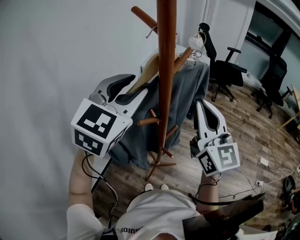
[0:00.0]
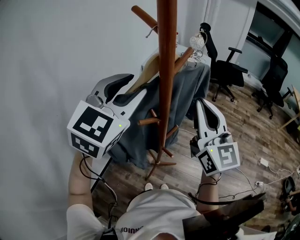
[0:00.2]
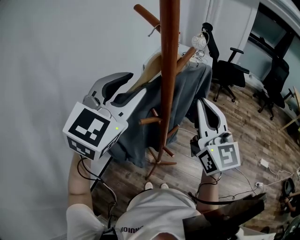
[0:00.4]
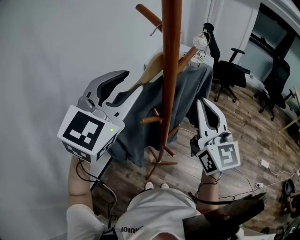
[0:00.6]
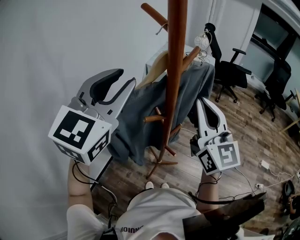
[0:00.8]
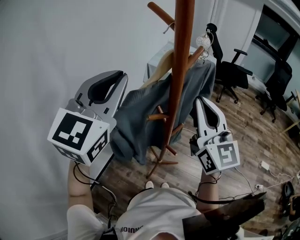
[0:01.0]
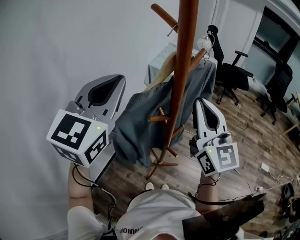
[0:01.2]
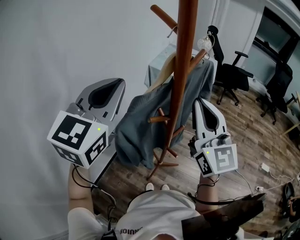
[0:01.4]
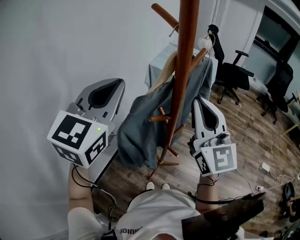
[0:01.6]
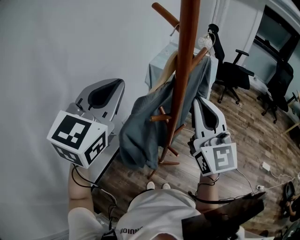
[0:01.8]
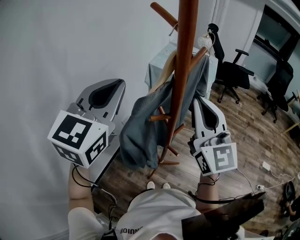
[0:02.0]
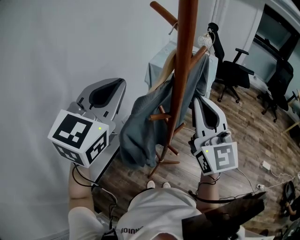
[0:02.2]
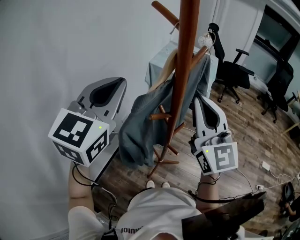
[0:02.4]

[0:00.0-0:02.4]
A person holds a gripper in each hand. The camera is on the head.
0:00.0 to 0:01.2: The left gripper travels to the left by about 5 cm, and closes.
0:01.2 to 0:02.4: The grippers make only small movements.

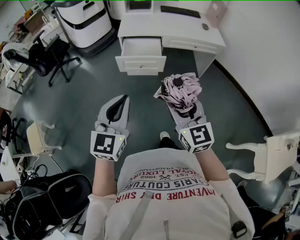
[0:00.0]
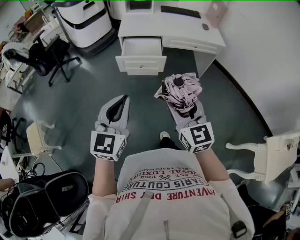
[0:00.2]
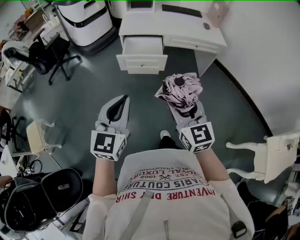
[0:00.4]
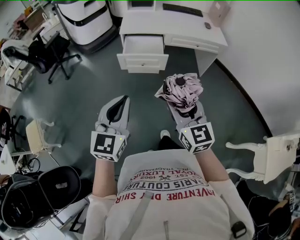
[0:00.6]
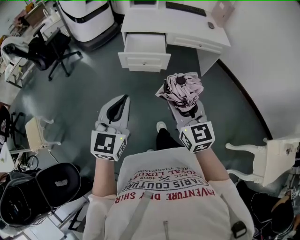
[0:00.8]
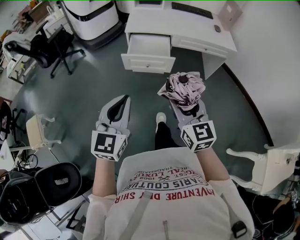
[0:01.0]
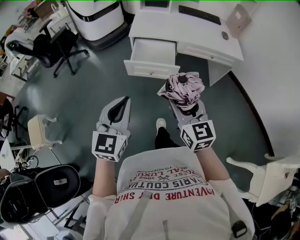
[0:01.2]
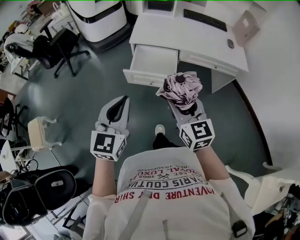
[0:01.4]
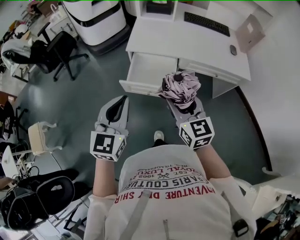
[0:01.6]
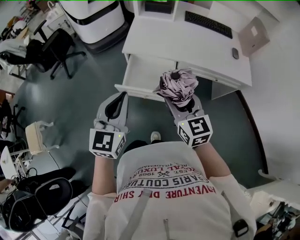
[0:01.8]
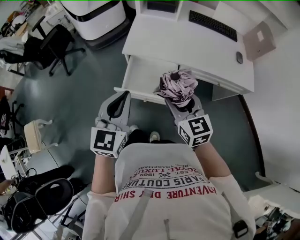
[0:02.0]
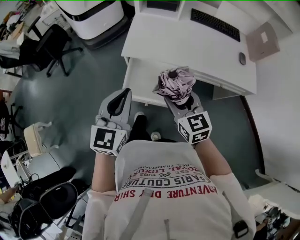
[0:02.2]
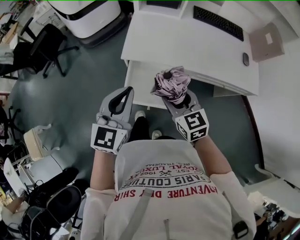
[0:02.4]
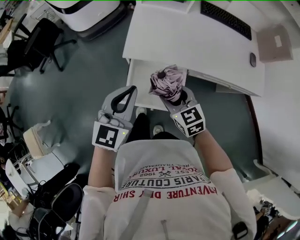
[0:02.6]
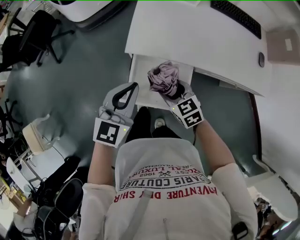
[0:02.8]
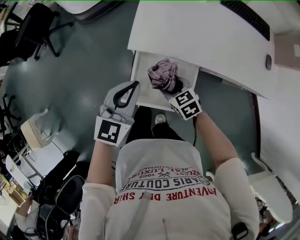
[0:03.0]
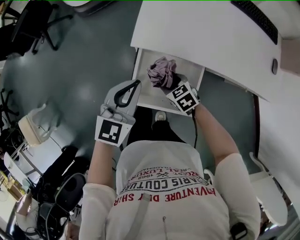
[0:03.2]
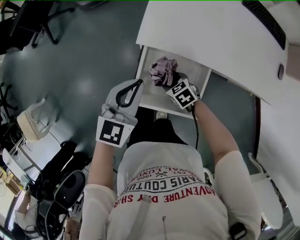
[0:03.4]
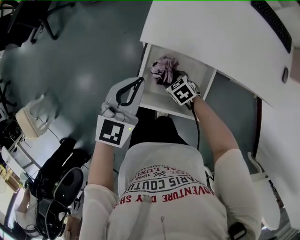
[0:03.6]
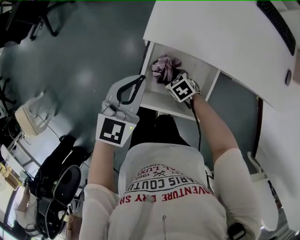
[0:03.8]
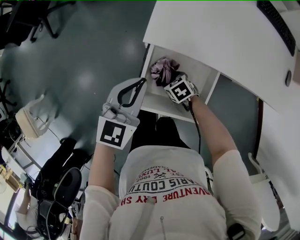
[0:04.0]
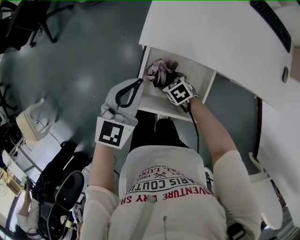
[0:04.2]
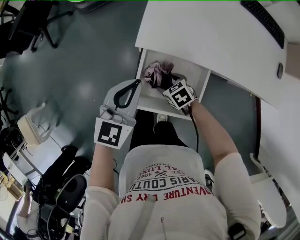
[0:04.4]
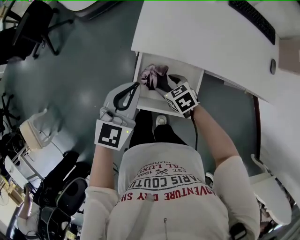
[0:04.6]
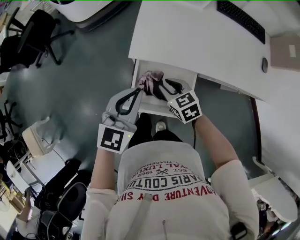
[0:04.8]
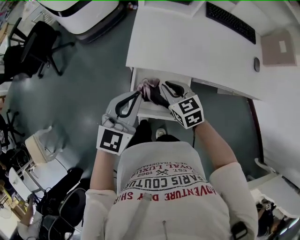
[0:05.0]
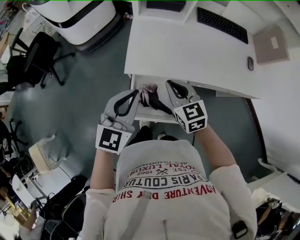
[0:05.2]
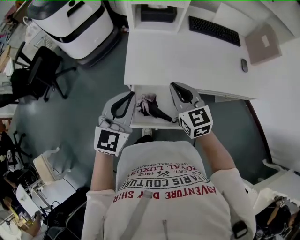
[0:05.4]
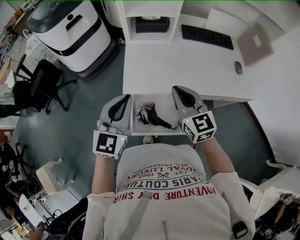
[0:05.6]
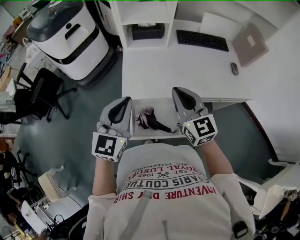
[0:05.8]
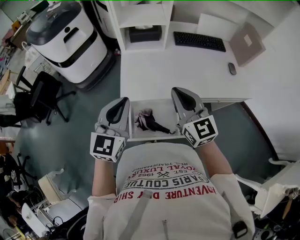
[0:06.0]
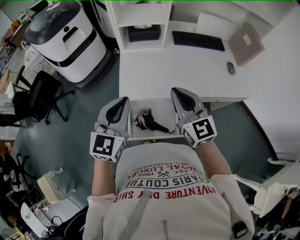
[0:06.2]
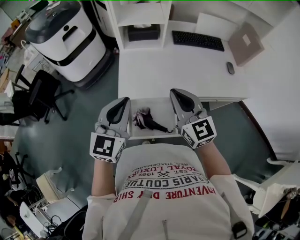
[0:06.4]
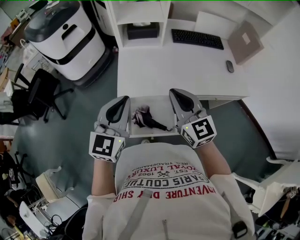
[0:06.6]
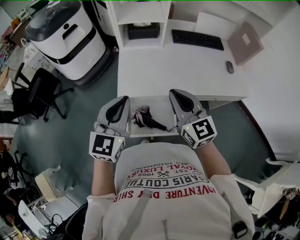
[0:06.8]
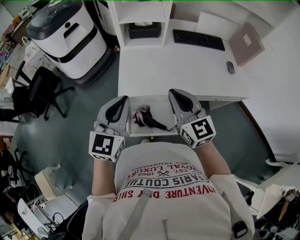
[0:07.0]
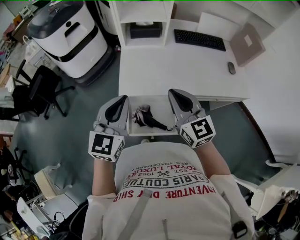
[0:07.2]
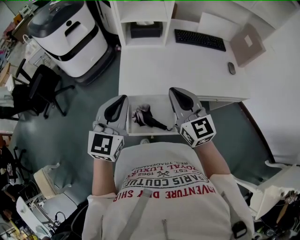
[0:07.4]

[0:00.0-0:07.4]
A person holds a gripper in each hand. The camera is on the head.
0:00.0 to 0:01.4: Both grippers travel together forward, some 20 cm.
0:01.4 to 0:03.0: Both grippers move forward and downward, about 40 cm. The right gripper points its fingers approximately 40 degrees further downward.
0:03.0 to 0:04.4: The right gripper travels downward by approximately 15 cm, and opens up. Meanwhile the left gripper moves downward, about 5 cm.
0:04.4 to 0:06.0: The right gripper moves upward, roughly 50 cm, points its fingers some 60 degrees further upward, and closes up. Meanwhile the left gripper goes about 25 cm upward.
0:06.0 to 0:07.4: The grippers stay close to where they were, moving slightly.

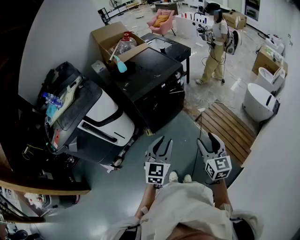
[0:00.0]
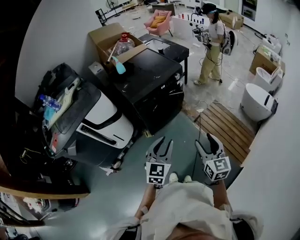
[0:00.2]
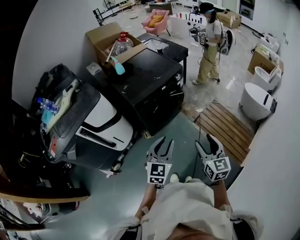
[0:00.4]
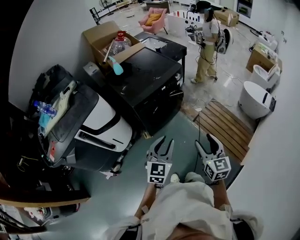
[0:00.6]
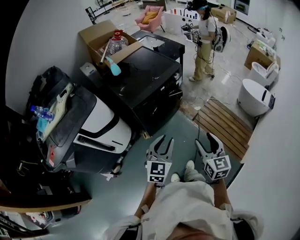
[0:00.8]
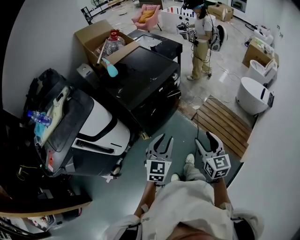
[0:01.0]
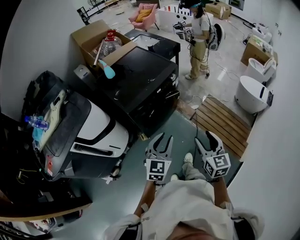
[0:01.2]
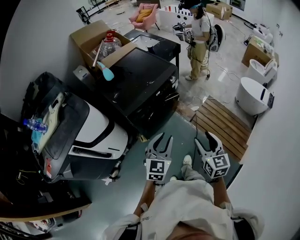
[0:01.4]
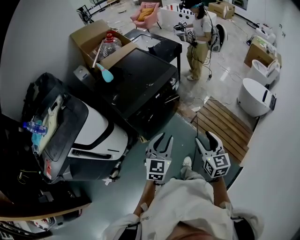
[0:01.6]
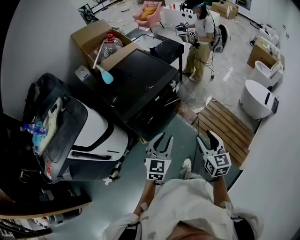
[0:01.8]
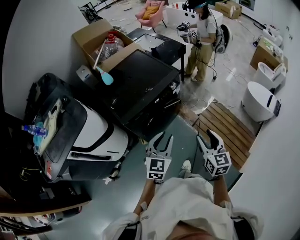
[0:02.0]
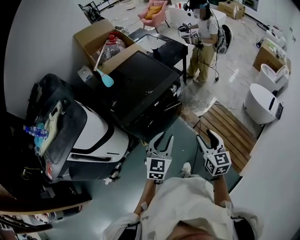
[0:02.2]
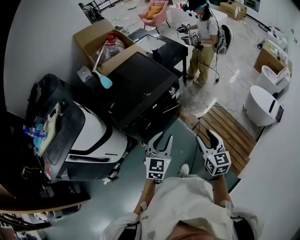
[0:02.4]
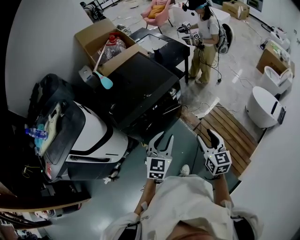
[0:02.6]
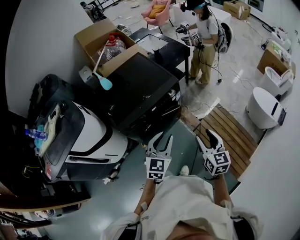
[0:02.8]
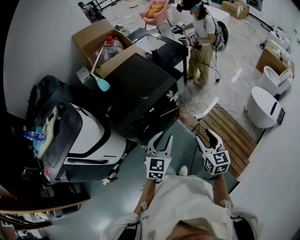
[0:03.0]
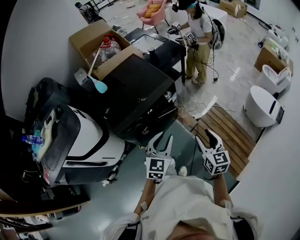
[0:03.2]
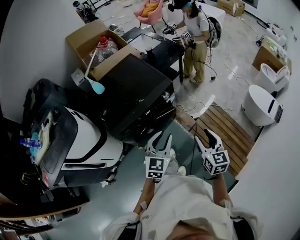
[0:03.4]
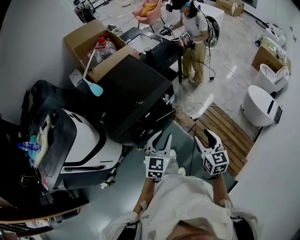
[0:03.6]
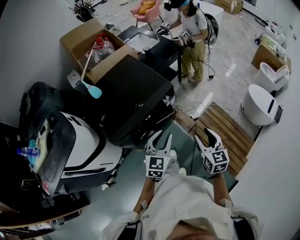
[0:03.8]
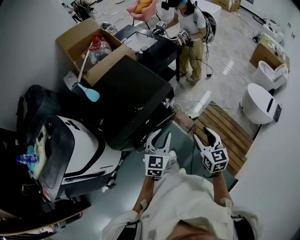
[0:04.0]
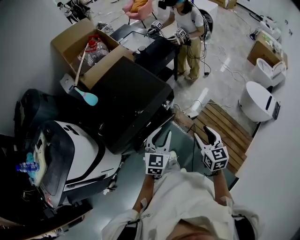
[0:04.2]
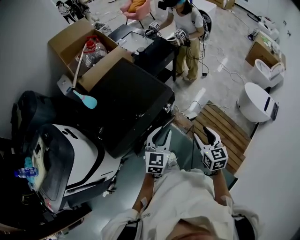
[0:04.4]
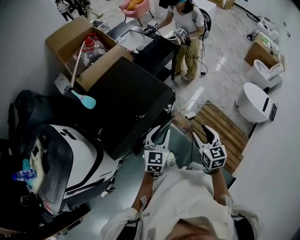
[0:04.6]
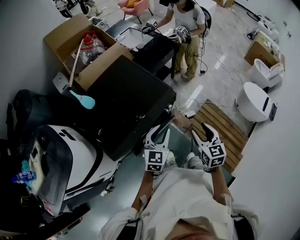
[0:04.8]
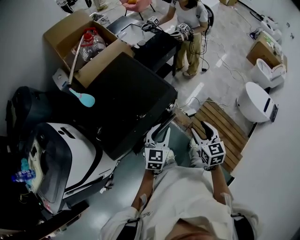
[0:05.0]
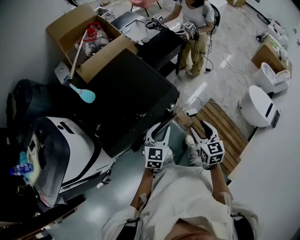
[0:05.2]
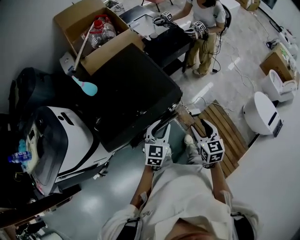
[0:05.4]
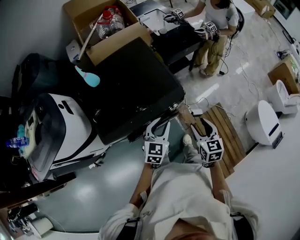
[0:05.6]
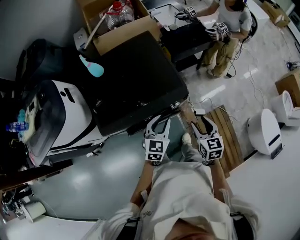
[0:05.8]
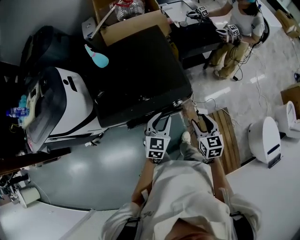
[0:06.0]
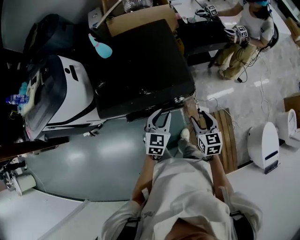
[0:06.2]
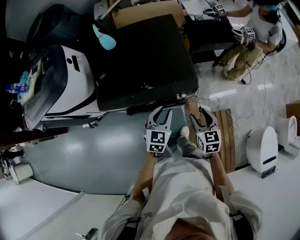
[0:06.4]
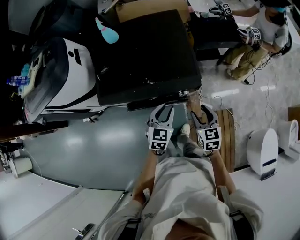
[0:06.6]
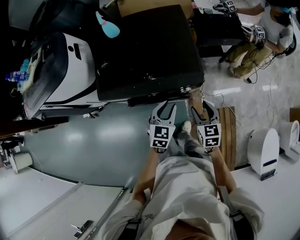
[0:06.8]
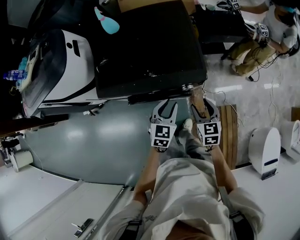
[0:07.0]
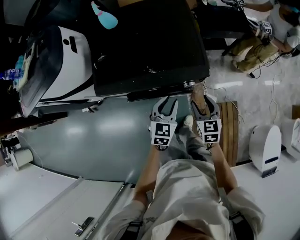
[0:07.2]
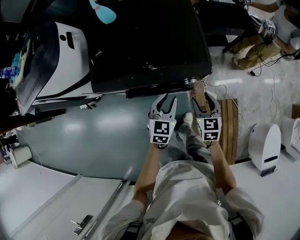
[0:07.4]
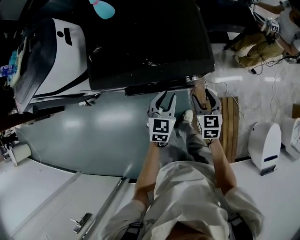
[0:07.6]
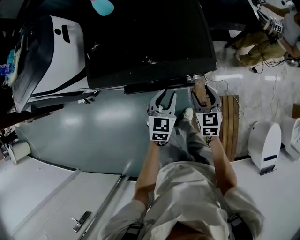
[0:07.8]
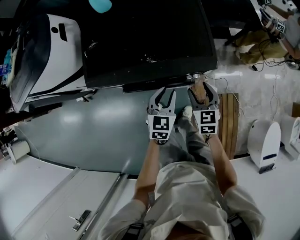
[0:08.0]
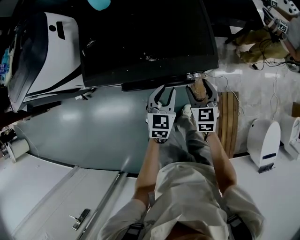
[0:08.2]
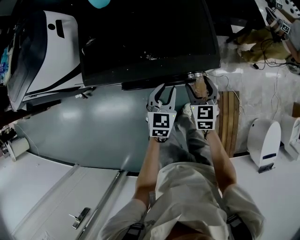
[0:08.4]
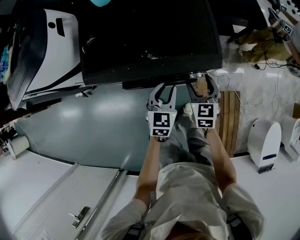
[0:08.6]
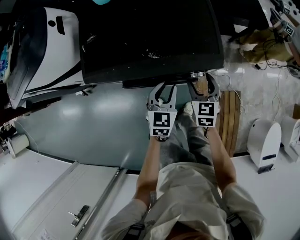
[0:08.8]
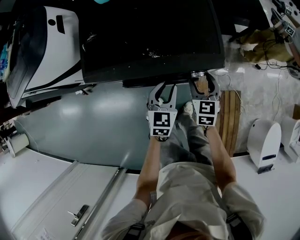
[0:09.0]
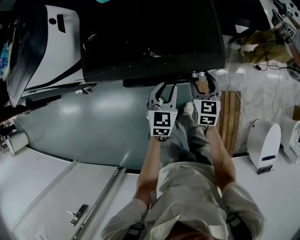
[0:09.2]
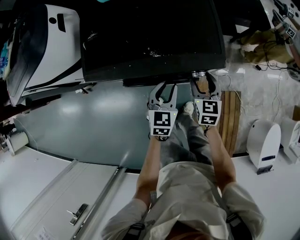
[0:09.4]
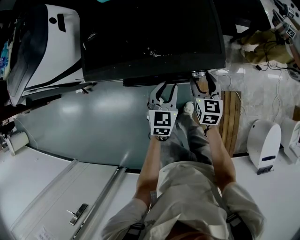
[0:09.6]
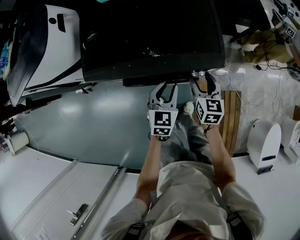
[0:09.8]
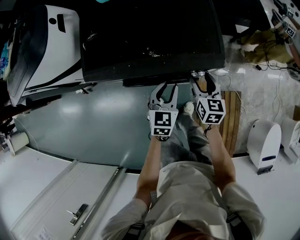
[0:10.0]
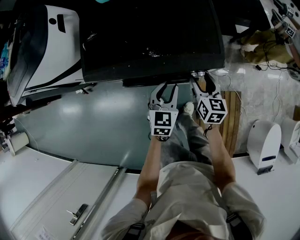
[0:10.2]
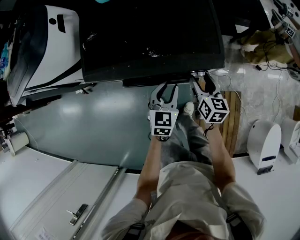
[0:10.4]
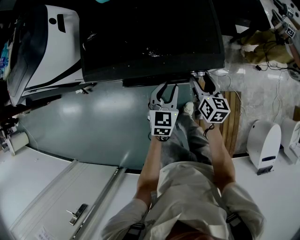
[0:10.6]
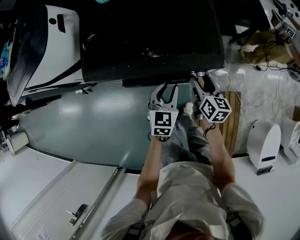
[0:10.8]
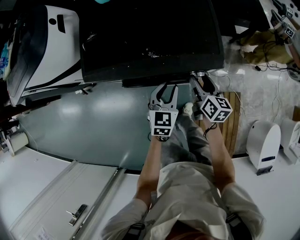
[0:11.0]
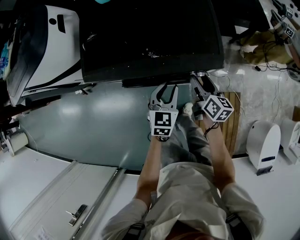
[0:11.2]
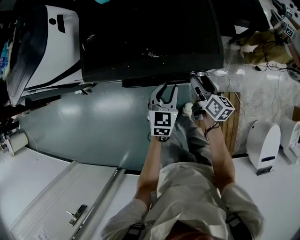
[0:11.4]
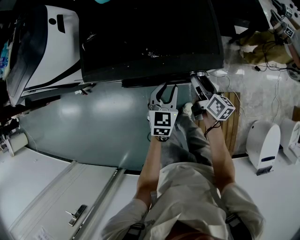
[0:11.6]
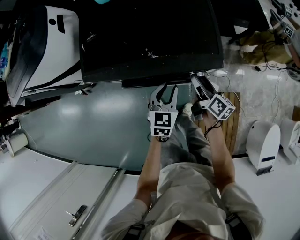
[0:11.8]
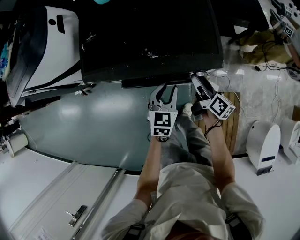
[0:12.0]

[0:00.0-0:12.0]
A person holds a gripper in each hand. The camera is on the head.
0:00.0 to 0:01.6: Both grippers move forward, approximately 20 cm.
0:01.6 to 0:03.0: The grippers both shift forward and to the right by roughly 15 cm.
0:03.0 to 0:04.4: The two grippers go some 15 cm forward.
0:04.4 to 0:06.0: The left gripper changes place by about 15 cm, and changes its angle by approximately 30 degrees. Meanwhile the right gripper changes place by about 20 cm, and rotates some 30 degrees.
0:06.0 to 0:07.6: Both grippers travel together downward, some 10 cm.
0:07.6 to 0:09.0: The right gripper goes roughly 5 cm forward.
0:09.0 to 0:10.4: The right gripper rotates about 30 degrees.
0:10.4 to 0:12.0: The right gripper turns by approximately 40 degrees.

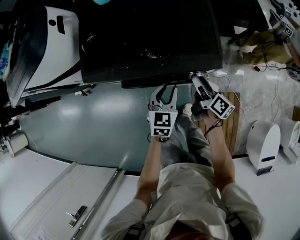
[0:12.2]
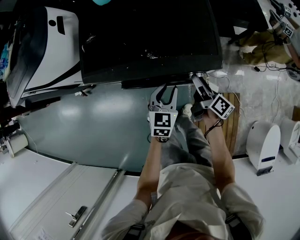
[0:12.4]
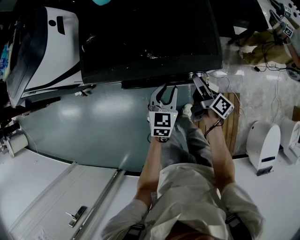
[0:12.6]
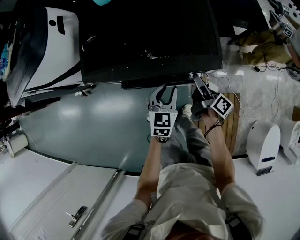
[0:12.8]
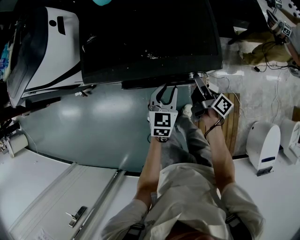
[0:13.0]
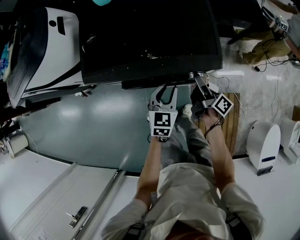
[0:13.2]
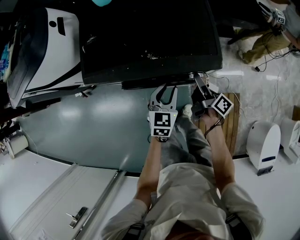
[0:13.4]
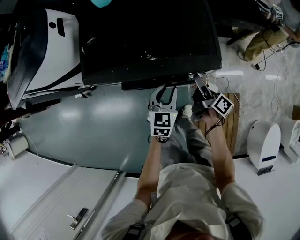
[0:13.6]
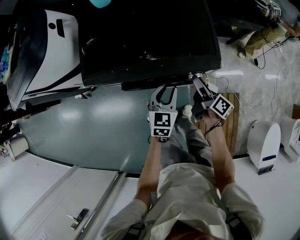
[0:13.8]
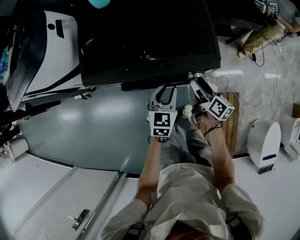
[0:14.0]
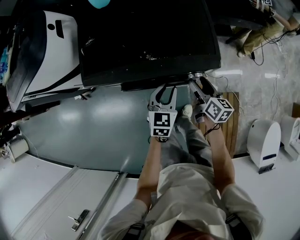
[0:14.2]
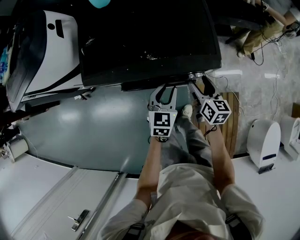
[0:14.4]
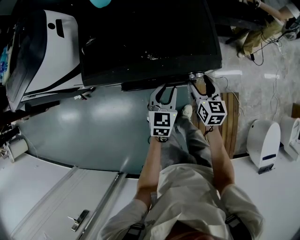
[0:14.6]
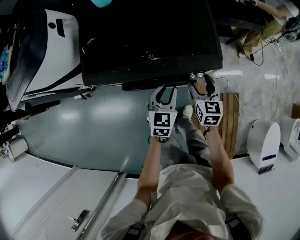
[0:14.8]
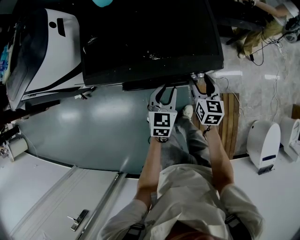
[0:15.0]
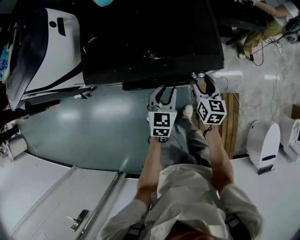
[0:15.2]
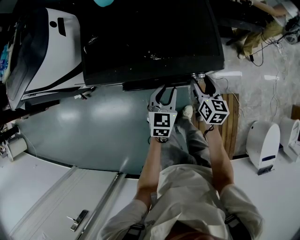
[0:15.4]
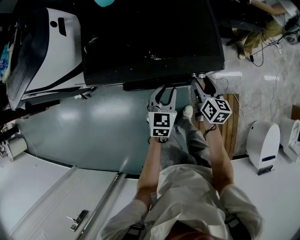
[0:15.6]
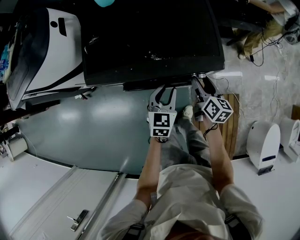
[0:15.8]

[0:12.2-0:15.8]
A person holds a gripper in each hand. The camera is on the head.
0:12.2 to 0:14.0: The grippers move only a little.
